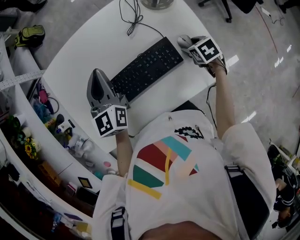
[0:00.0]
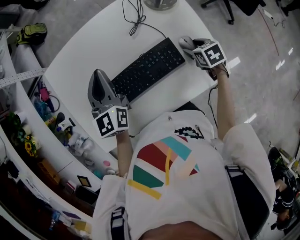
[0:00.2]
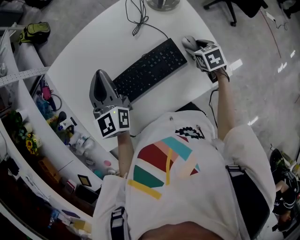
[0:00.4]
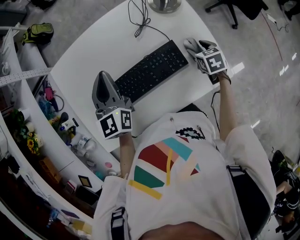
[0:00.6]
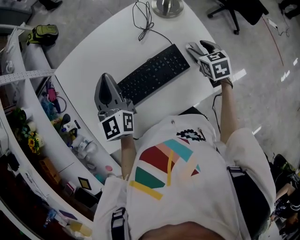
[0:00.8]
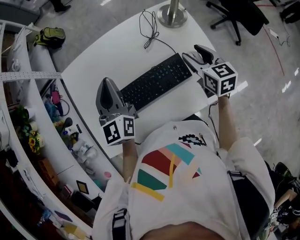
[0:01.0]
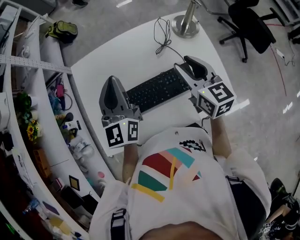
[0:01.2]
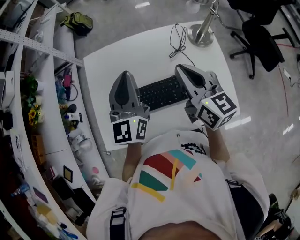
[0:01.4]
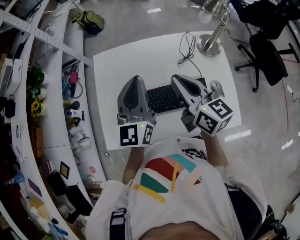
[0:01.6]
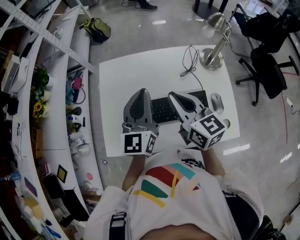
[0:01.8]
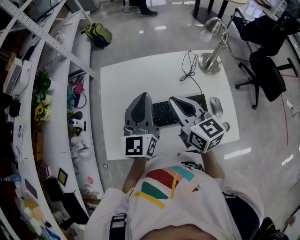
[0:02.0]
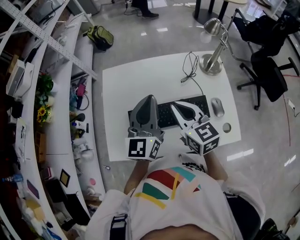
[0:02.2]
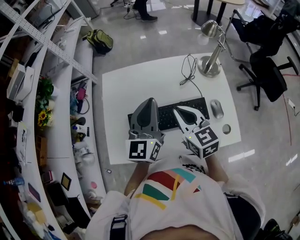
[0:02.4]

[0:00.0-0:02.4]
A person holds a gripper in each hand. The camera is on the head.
0:00.0 to 0:01.2: The left gripper shifts some 10 cm upward. Meanwhile the right gripper shifts some 30 cm upward and to the left, and tilts its fingers about 50 degrees upward.
0:01.2 to 0:02.4: The left gripper moves some 5 cm; the right gripper travels to the left by some 10 cm, and closes.

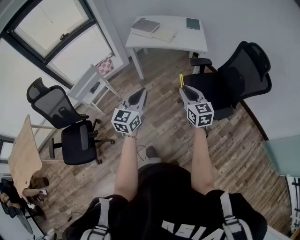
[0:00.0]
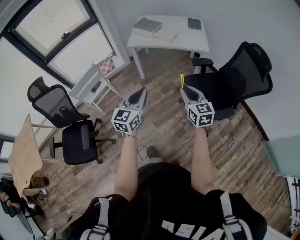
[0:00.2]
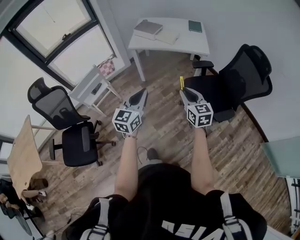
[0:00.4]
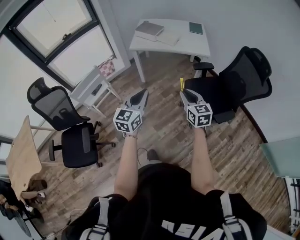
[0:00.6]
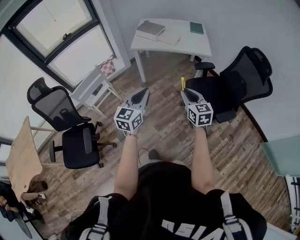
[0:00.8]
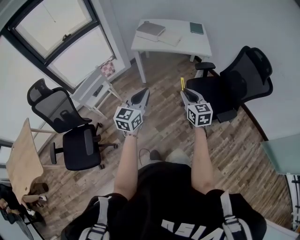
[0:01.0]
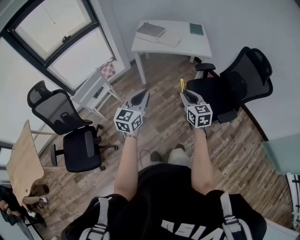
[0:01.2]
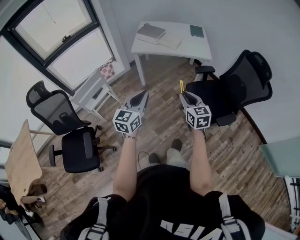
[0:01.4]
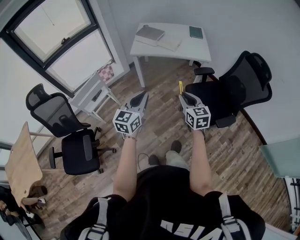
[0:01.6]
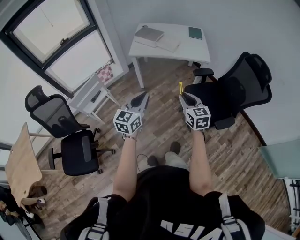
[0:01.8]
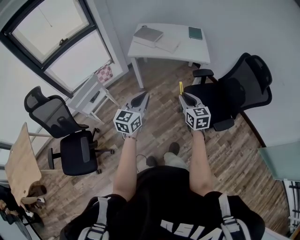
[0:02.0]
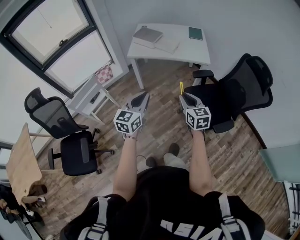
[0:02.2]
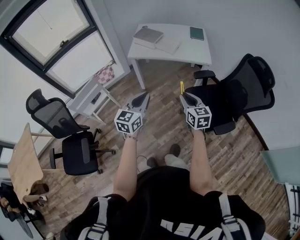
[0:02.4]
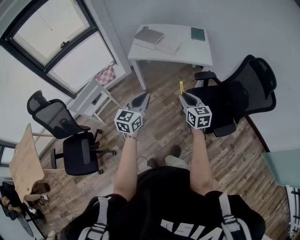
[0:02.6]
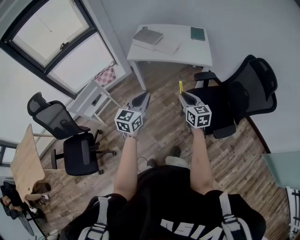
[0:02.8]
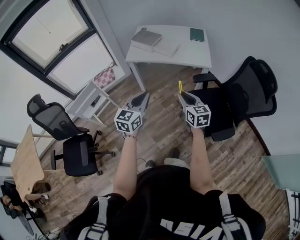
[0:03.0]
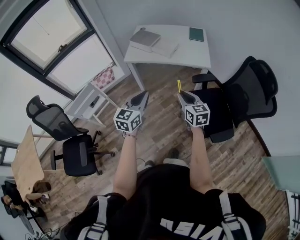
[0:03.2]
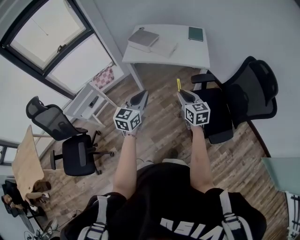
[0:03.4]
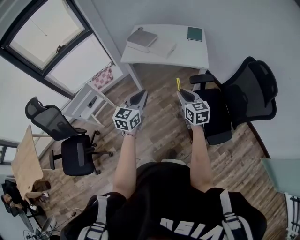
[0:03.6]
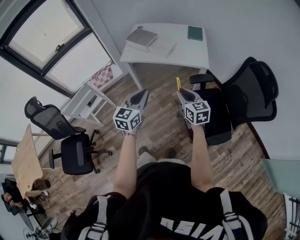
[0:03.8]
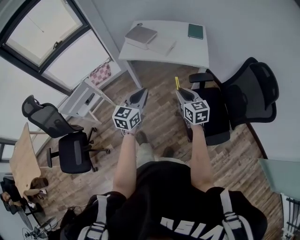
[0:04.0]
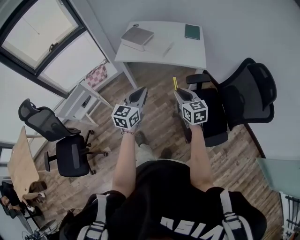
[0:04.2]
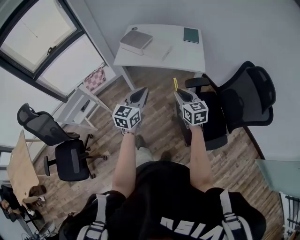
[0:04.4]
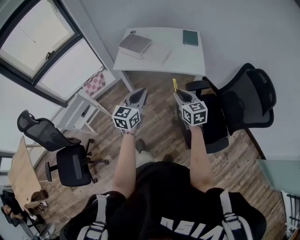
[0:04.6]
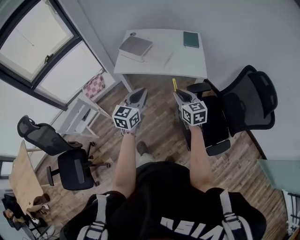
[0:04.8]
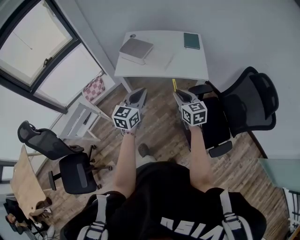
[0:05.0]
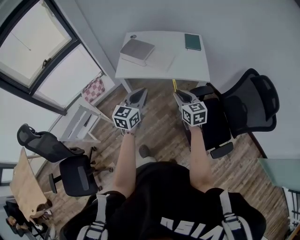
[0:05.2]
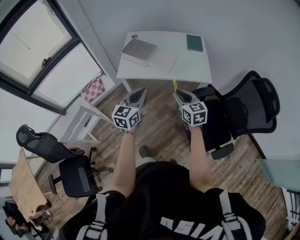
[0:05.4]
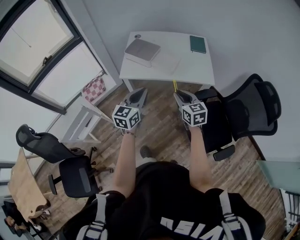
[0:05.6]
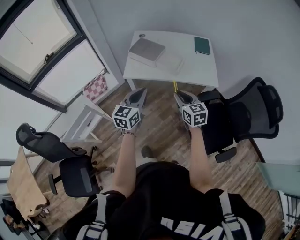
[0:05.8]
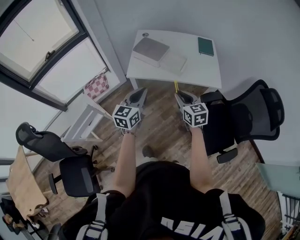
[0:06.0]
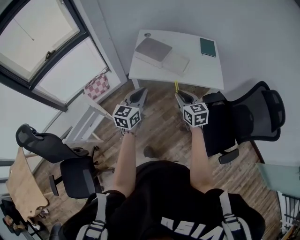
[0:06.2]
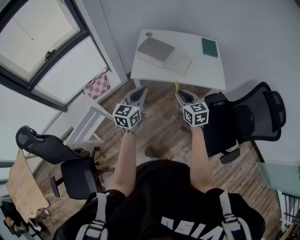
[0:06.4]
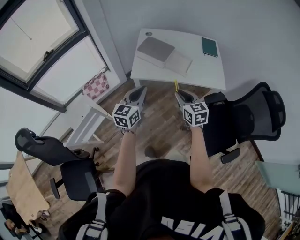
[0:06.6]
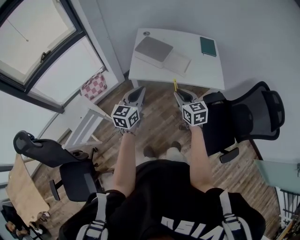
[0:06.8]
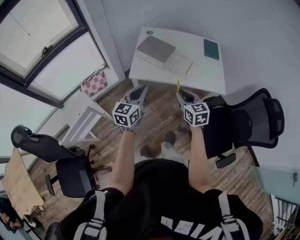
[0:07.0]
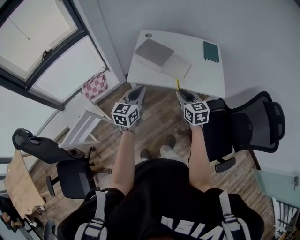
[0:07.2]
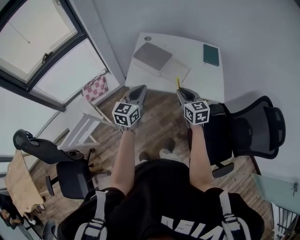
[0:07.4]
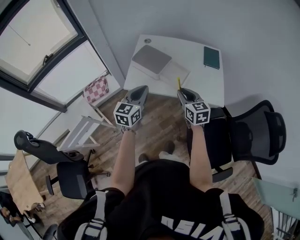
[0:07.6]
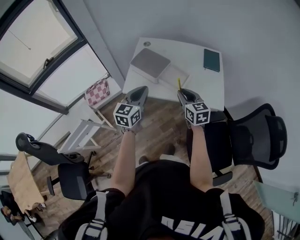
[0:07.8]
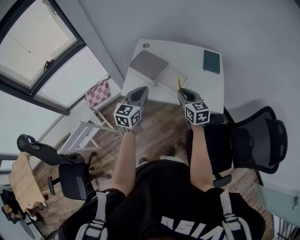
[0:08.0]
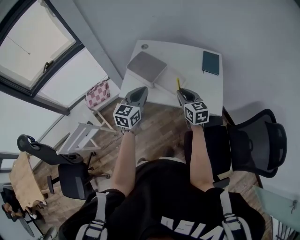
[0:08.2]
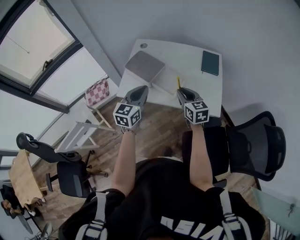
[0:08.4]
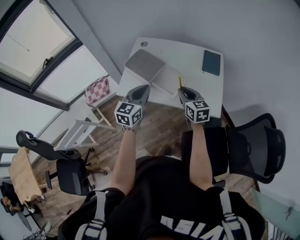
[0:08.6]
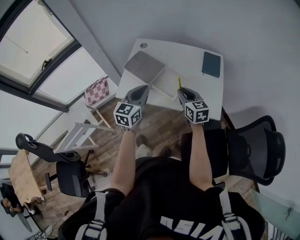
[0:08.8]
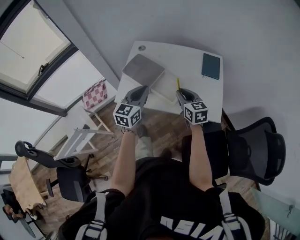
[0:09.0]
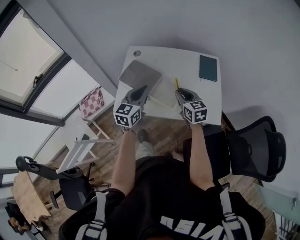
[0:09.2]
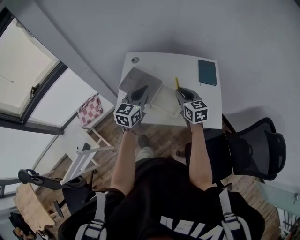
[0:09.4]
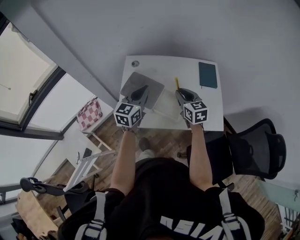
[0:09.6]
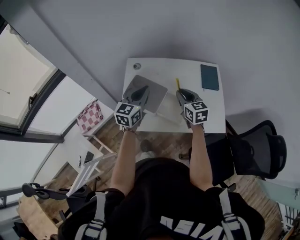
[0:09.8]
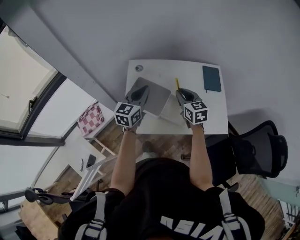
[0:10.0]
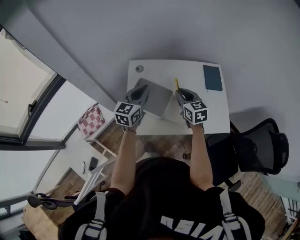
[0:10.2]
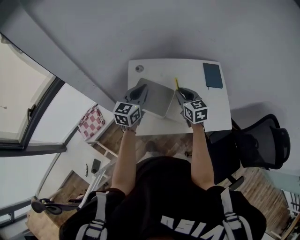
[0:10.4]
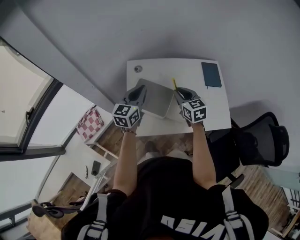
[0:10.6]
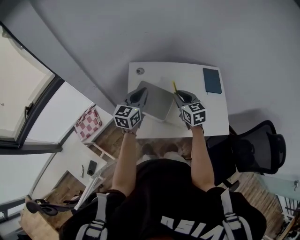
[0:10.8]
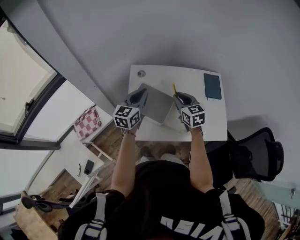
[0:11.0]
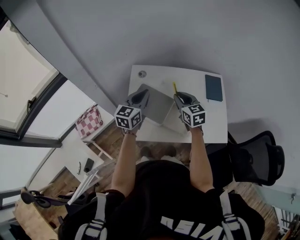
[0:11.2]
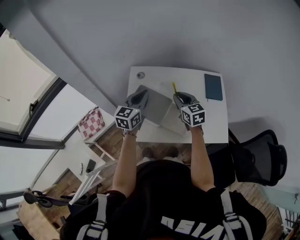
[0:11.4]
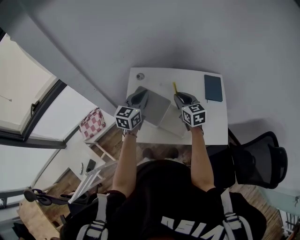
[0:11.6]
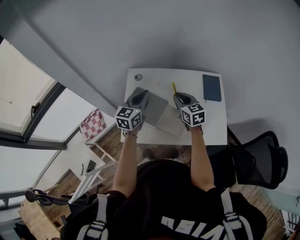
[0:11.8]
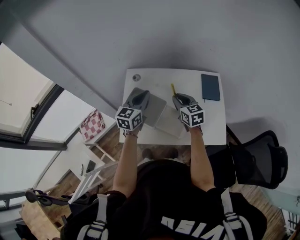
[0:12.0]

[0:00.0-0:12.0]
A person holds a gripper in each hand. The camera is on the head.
0:00.0 to 0:01.6: The two grippers go roughly 5 cm to the left.
0:01.6 to 0:03.0: The two grippers go some 15 cm forward and to the right.
0:03.0 to 0:04.4: The left gripper moves forward and to the right, some 15 cm, while the right gripper is displaced forward by approximately 10 cm.
0:04.4 to 0:06.0: Both grippers travel together to the left and forward, roughly 20 cm.
0:06.0 to 0:07.6: Both grippers travel together forward, about 15 cm.
0:07.6 to 0:09.0: Both grippers move forward and to the right, about 15 cm.
0:09.0 to 0:10.4: Both grippers move forward and to the left, approximately 20 cm.
0:10.4 to 0:12.0: Both grippers move to the right, approximately 5 cm.

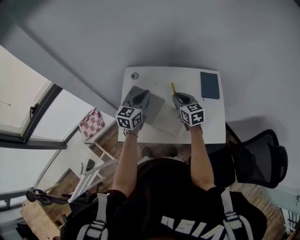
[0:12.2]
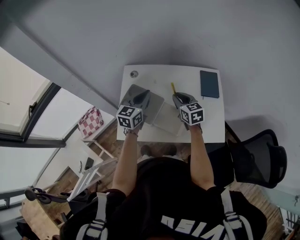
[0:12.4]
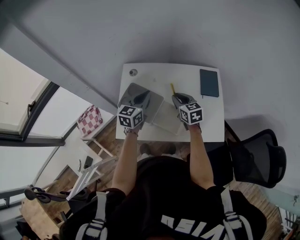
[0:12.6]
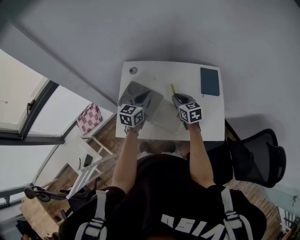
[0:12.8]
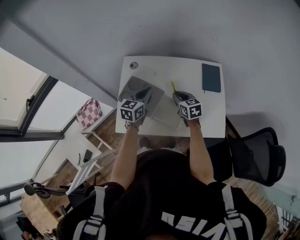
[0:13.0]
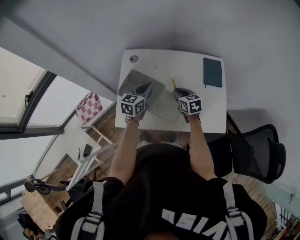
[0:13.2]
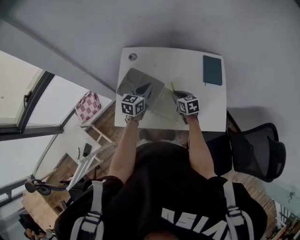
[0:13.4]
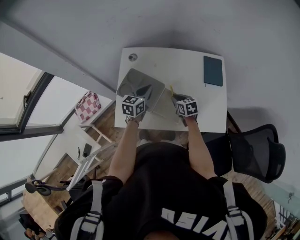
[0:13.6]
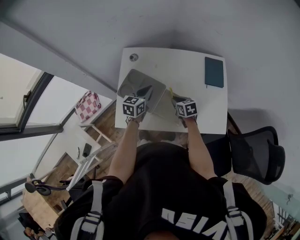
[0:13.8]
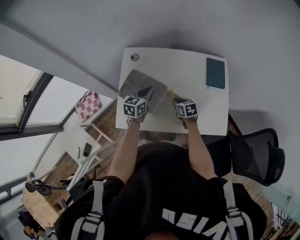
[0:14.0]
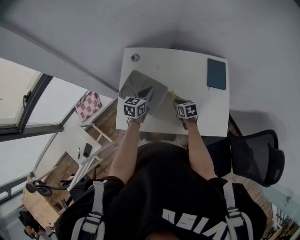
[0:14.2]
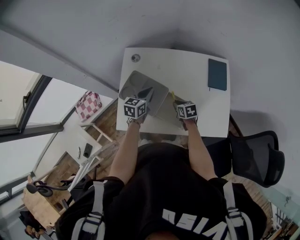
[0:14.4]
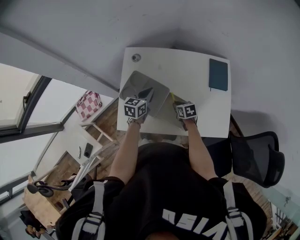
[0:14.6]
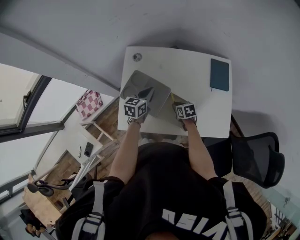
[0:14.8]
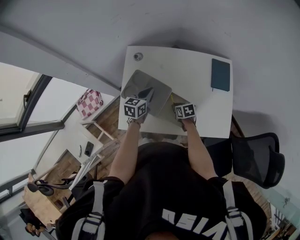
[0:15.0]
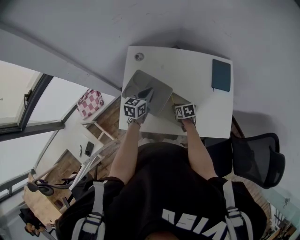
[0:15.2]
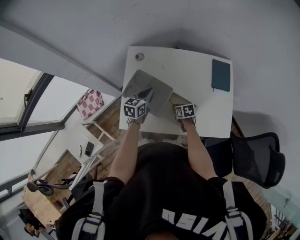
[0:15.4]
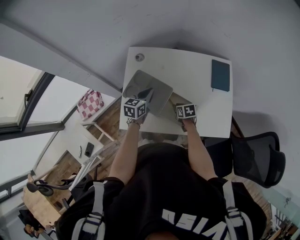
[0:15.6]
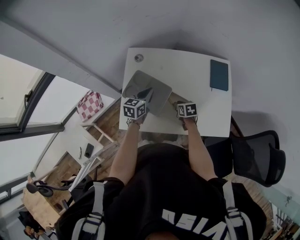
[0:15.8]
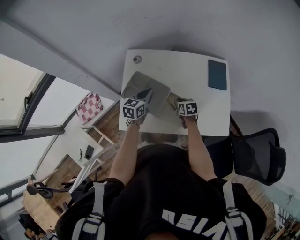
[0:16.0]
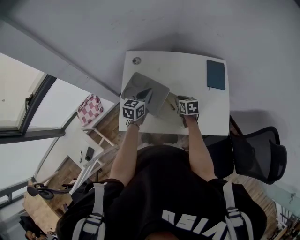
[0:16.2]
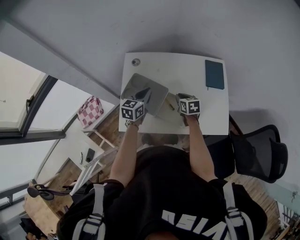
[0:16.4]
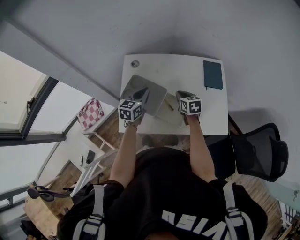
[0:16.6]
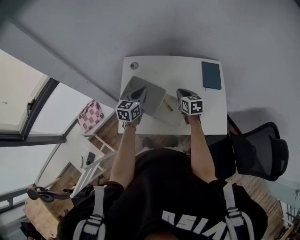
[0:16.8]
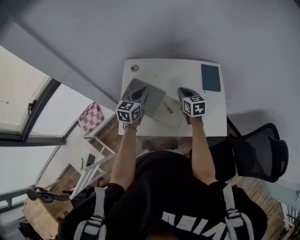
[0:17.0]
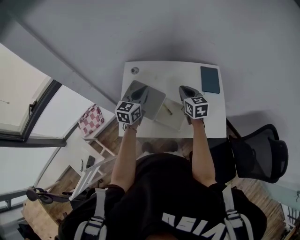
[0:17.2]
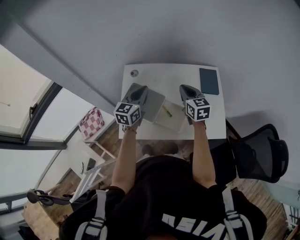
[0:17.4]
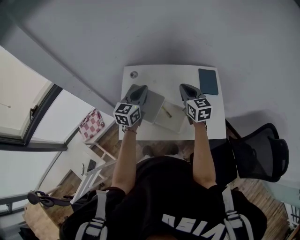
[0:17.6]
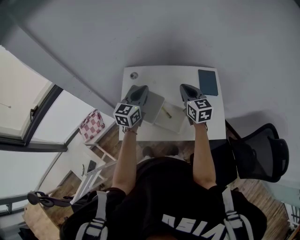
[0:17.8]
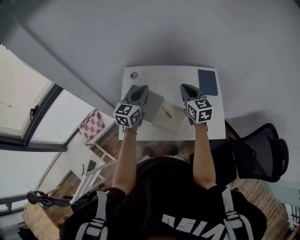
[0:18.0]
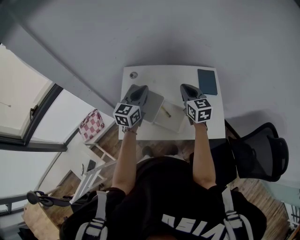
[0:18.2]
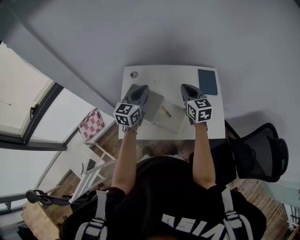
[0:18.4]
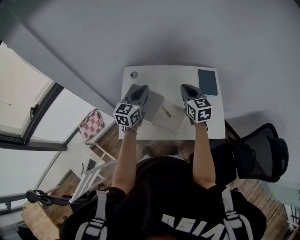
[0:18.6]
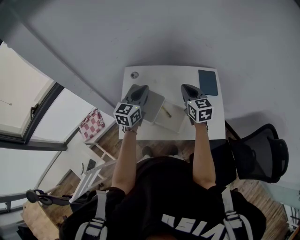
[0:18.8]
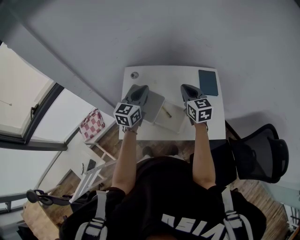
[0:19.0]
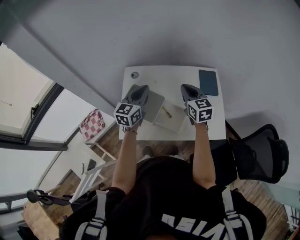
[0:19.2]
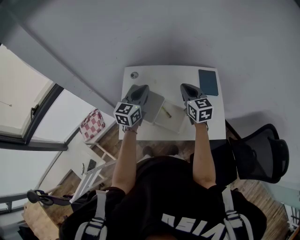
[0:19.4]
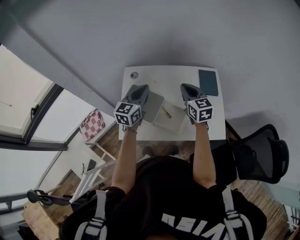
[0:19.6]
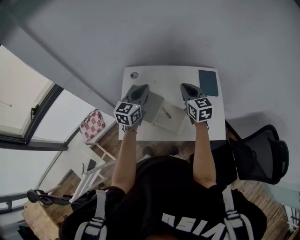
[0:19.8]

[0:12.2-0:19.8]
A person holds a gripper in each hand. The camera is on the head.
0:12.2 to 0:13.8: Both grippers travel together downward, about 15 cm. The right gripper swivels some 30 degrees.
0:13.8 to 0:15.2: The right gripper moves downward, about 5 cm.
0:15.2 to 0:16.8: The right gripper heads upward, covering roughly 20 cm, and changes its angle by some 30 degrees; the left gripper shifts approximately 10 cm upward.
0:16.8 to 0:18.2: The two grippers go about 15 cm upward. The right gripper swivels some 20 degrees.
0:18.2 to 0:19.8: The two grippers keep their place.

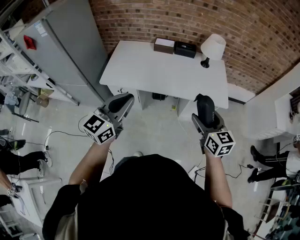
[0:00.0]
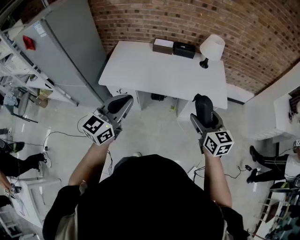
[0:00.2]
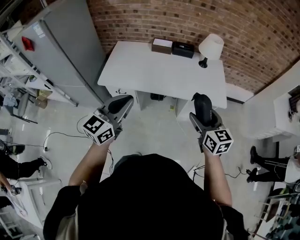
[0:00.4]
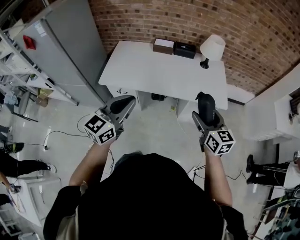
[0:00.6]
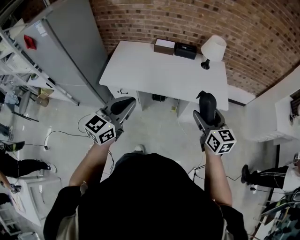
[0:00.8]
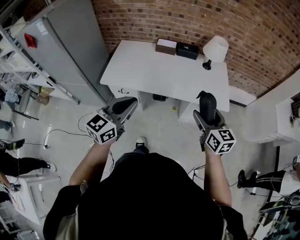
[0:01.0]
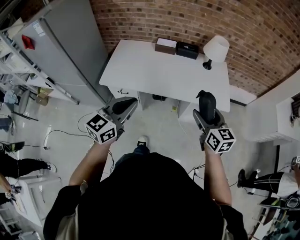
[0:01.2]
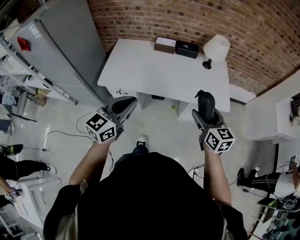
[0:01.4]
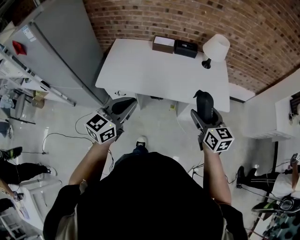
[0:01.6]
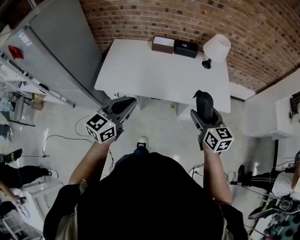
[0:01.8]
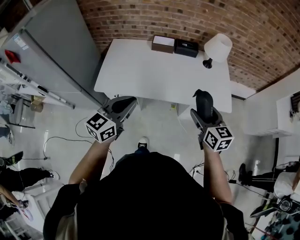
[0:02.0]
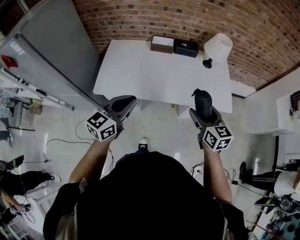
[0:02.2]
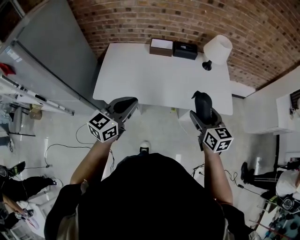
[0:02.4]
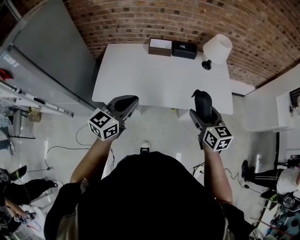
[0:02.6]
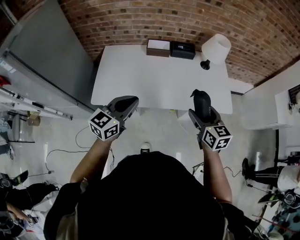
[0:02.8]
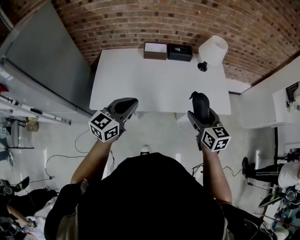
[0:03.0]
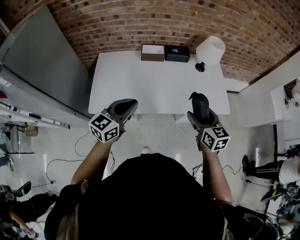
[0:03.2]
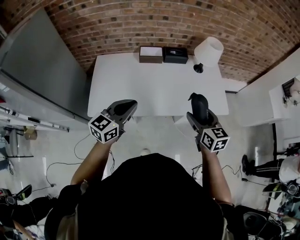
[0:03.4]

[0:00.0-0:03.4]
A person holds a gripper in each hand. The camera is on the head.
0:00.0 to 0:01.6: The right gripper shifts some 10 cm forward. The left gripper is displaced forward and downward by about 10 cm.
0:01.6 to 0:03.4: The left gripper travels forward by some 20 cm. Meanwhile the right gripper moves forward and to the left, approximately 15 cm.
